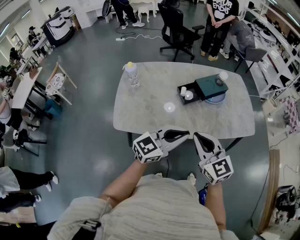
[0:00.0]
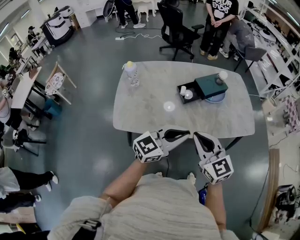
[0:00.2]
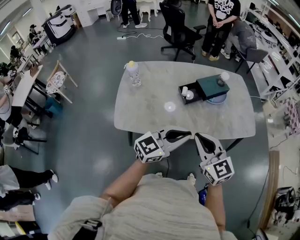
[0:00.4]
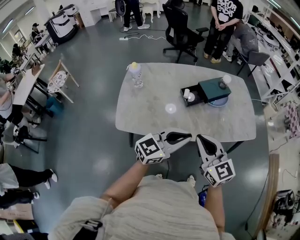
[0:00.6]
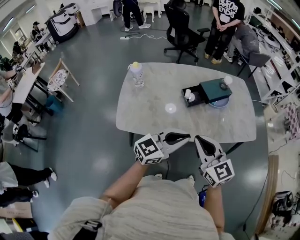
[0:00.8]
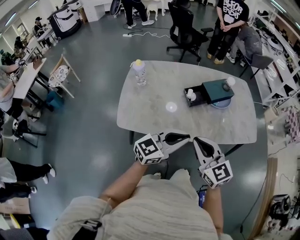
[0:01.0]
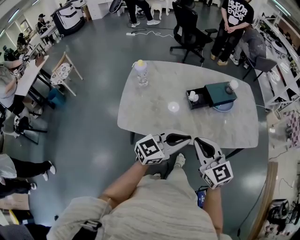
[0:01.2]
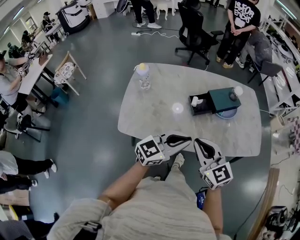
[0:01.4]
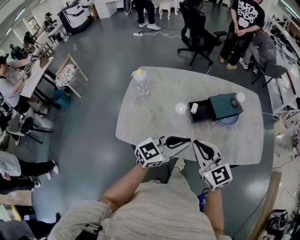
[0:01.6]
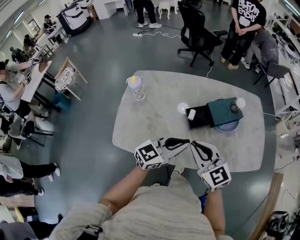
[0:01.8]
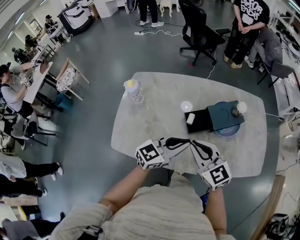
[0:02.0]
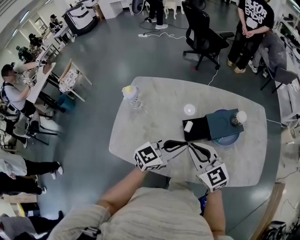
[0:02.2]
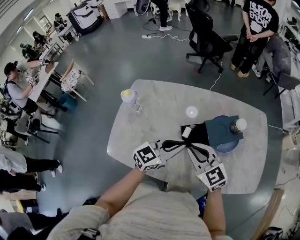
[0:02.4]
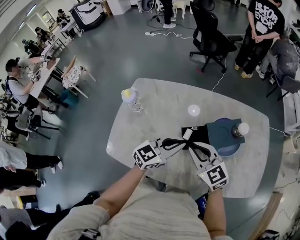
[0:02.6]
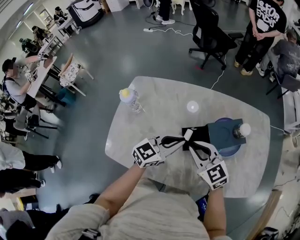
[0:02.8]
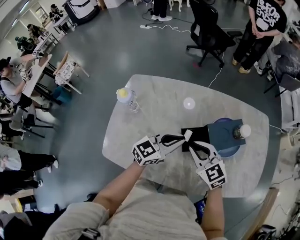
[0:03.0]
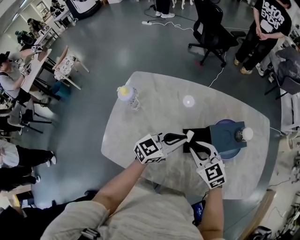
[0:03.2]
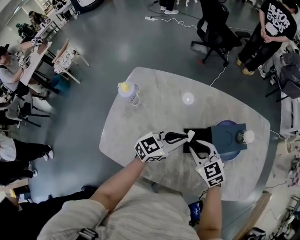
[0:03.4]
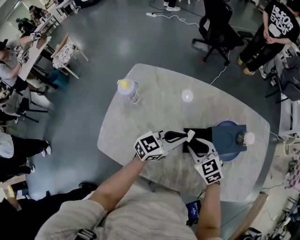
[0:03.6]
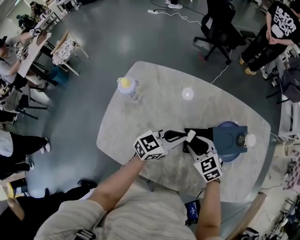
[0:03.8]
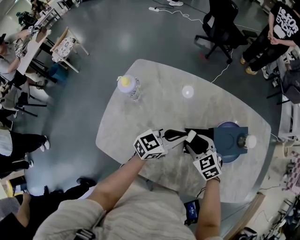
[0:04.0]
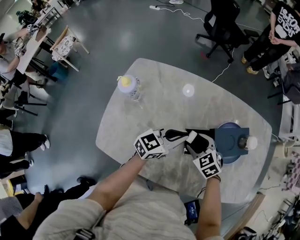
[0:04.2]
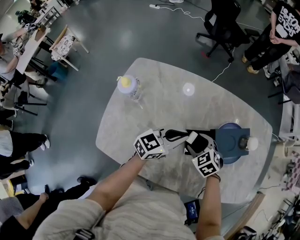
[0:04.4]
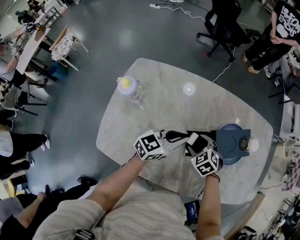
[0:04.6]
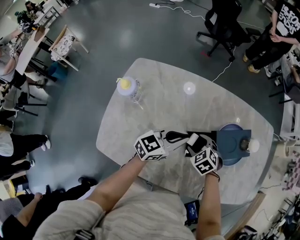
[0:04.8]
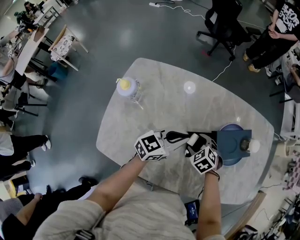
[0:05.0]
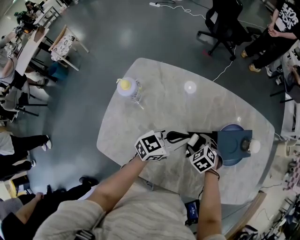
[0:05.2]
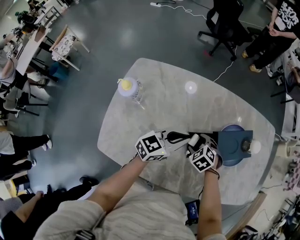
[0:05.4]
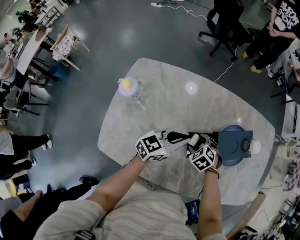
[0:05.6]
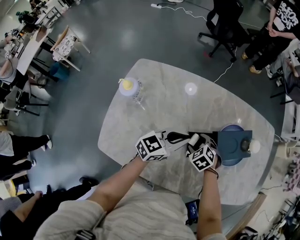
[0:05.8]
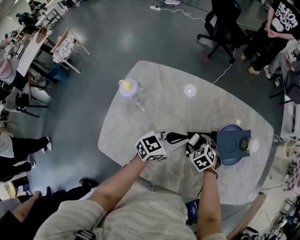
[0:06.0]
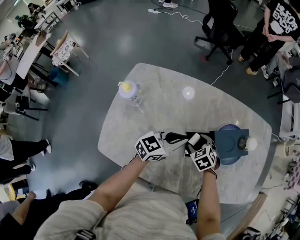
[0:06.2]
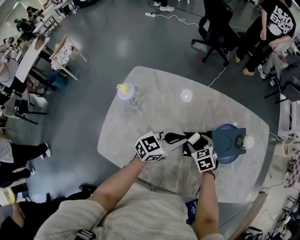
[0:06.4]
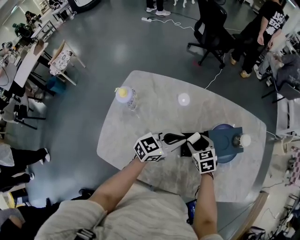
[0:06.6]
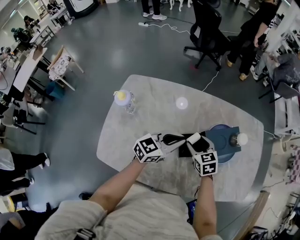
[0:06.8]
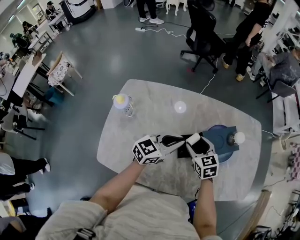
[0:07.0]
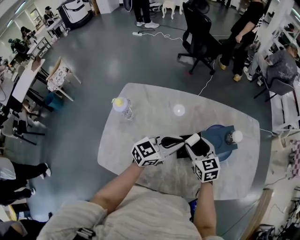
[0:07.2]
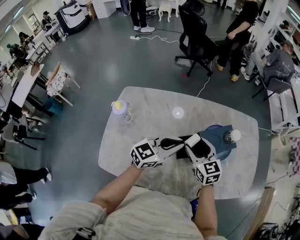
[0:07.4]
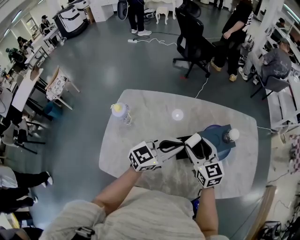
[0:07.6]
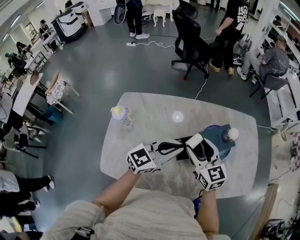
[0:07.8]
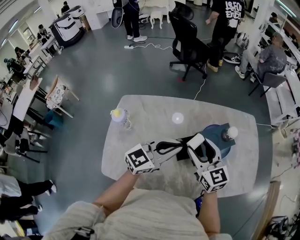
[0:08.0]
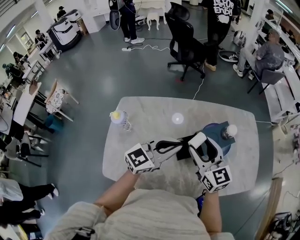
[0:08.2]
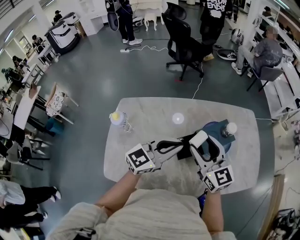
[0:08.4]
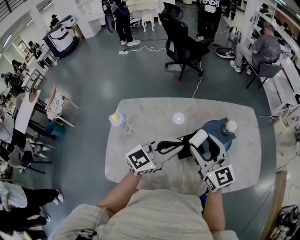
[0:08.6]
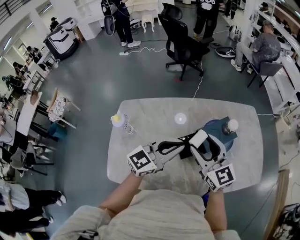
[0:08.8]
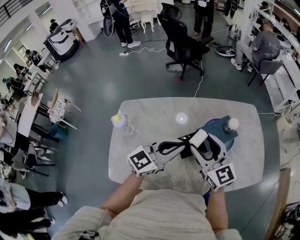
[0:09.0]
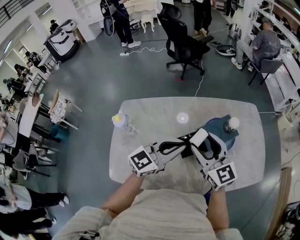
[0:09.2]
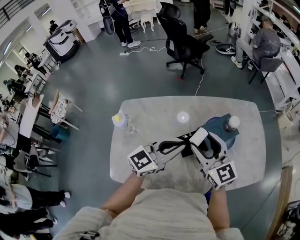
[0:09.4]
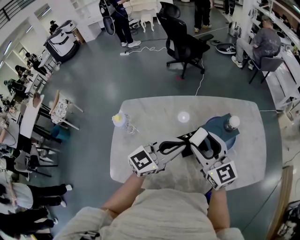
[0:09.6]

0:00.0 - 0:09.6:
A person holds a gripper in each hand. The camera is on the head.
0:00.0 - 0:01.6: Both grippers move forward, some 10 cm.
0:01.6 - 0:03.2: The right gripper goes about 25 cm forward and downward, and swivels about 20 degrees, while the left gripper moves forward, about 25 cm.
0:03.2 - 0:04.8: The right gripper is displaced downward by about 15 cm, angles its fingers downward, by roughly 30 degrees, and opens, while the left gripper ends up about 5 cm from where it was.
0:04.8 - 0:06.4: The grippers stay close to where they were, moving slightly.
0:06.4 - 0:08.0: The right gripper shifts some 25 cm upward, and tips its fingers upward by roughly 40 degrees, while the left gripper goes about 15 cm upward.
0:08.0 - 0:09.6: There are only small adjustments of the grippers.

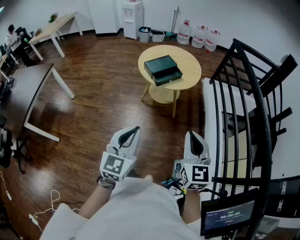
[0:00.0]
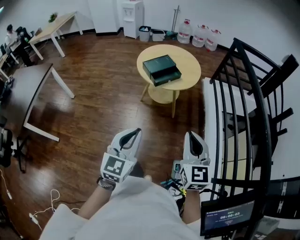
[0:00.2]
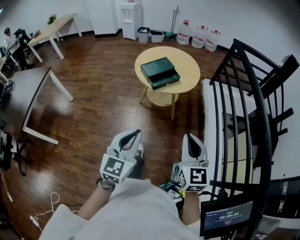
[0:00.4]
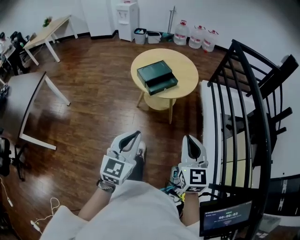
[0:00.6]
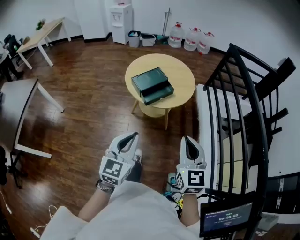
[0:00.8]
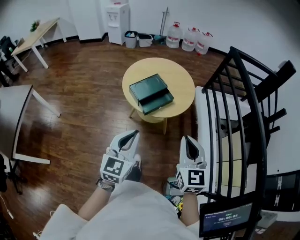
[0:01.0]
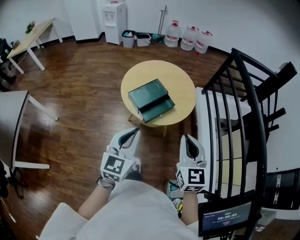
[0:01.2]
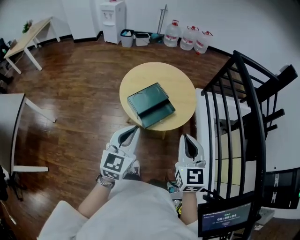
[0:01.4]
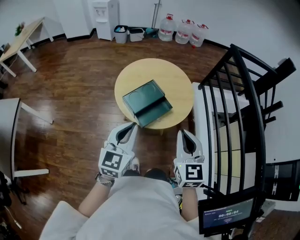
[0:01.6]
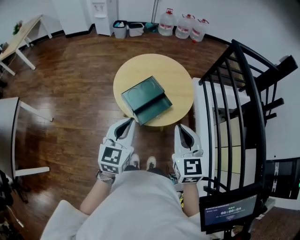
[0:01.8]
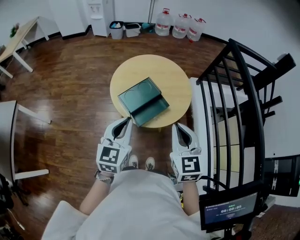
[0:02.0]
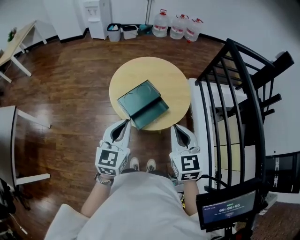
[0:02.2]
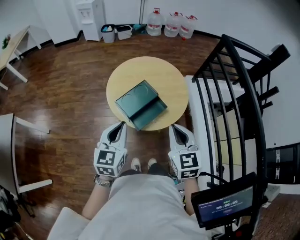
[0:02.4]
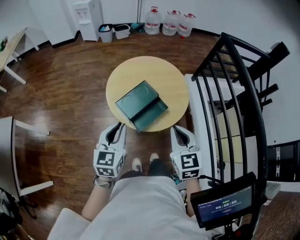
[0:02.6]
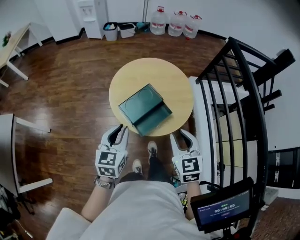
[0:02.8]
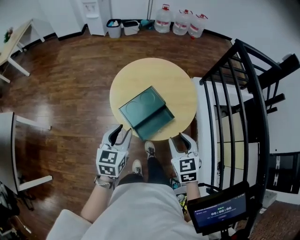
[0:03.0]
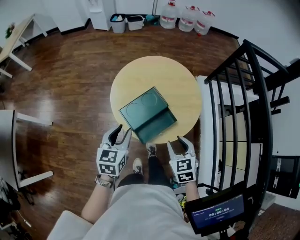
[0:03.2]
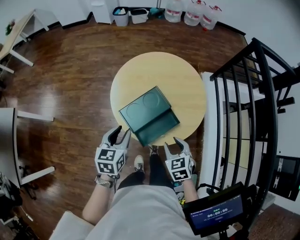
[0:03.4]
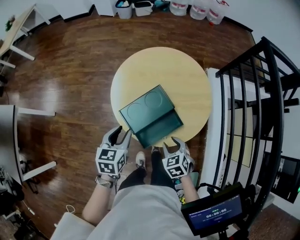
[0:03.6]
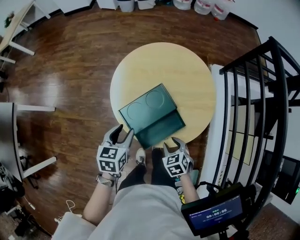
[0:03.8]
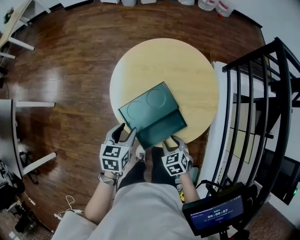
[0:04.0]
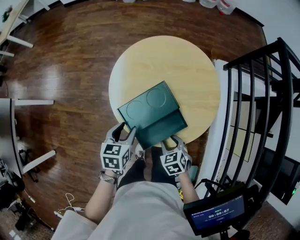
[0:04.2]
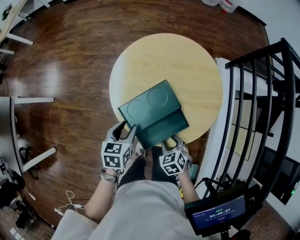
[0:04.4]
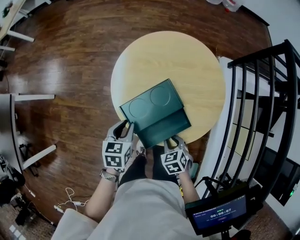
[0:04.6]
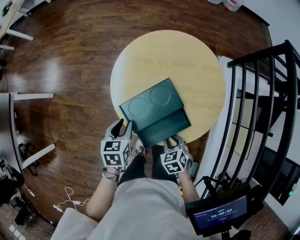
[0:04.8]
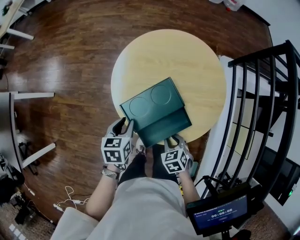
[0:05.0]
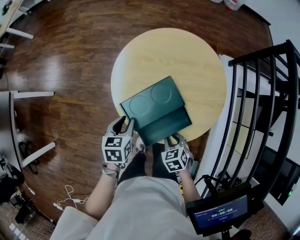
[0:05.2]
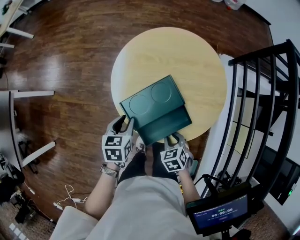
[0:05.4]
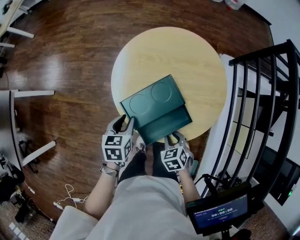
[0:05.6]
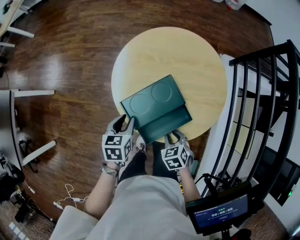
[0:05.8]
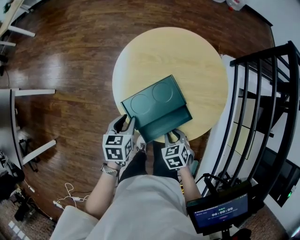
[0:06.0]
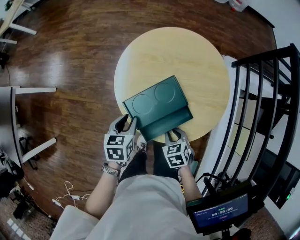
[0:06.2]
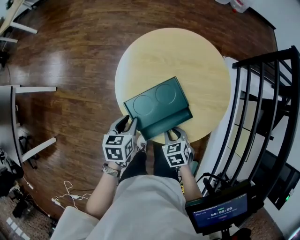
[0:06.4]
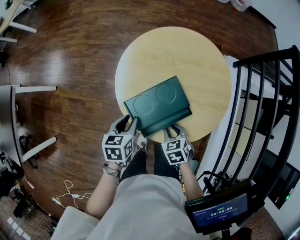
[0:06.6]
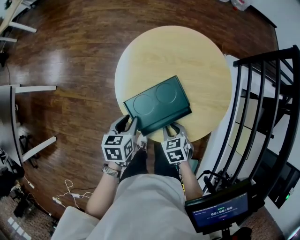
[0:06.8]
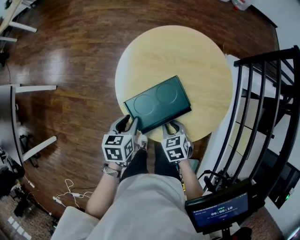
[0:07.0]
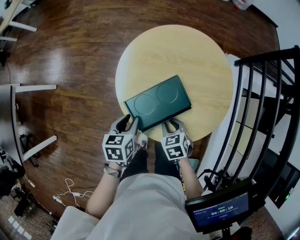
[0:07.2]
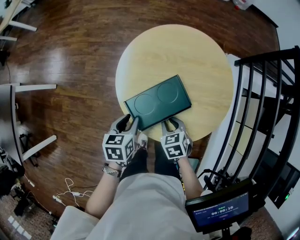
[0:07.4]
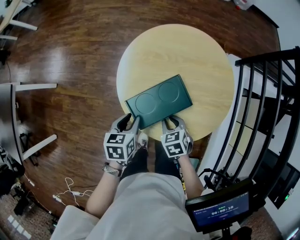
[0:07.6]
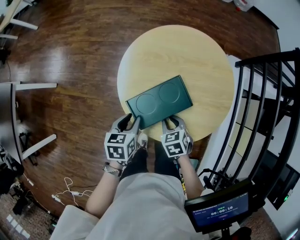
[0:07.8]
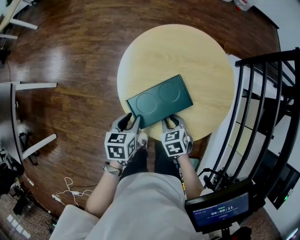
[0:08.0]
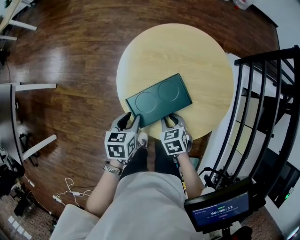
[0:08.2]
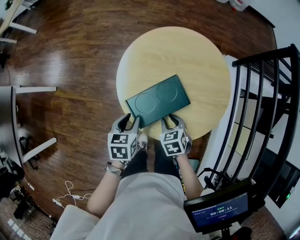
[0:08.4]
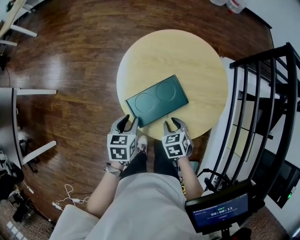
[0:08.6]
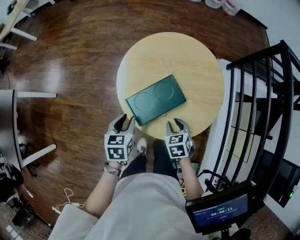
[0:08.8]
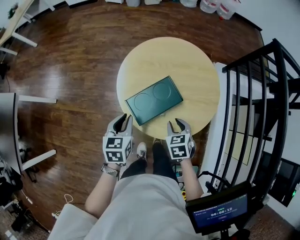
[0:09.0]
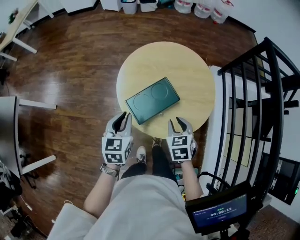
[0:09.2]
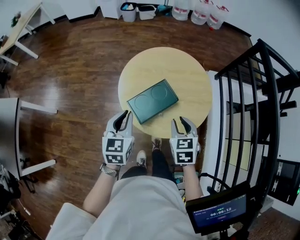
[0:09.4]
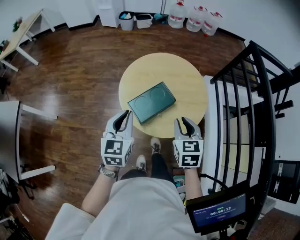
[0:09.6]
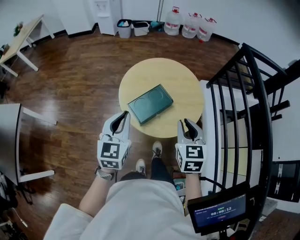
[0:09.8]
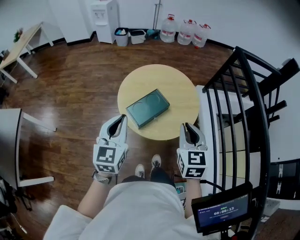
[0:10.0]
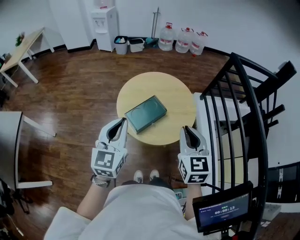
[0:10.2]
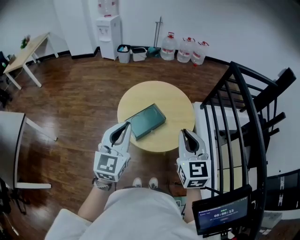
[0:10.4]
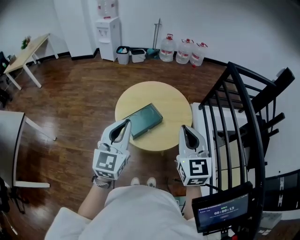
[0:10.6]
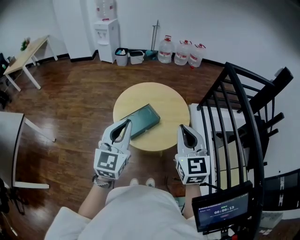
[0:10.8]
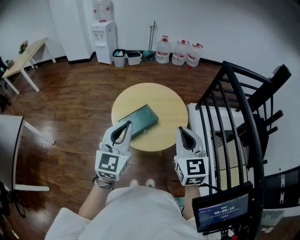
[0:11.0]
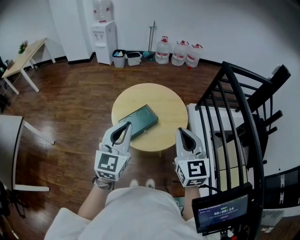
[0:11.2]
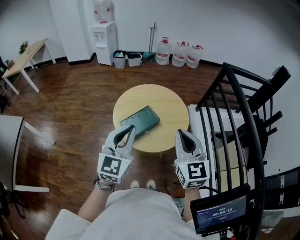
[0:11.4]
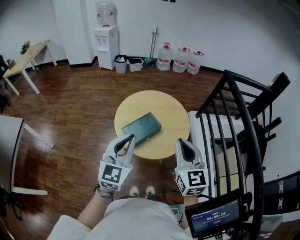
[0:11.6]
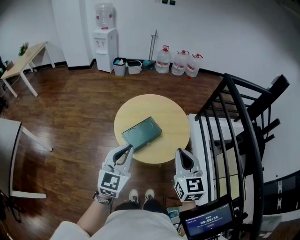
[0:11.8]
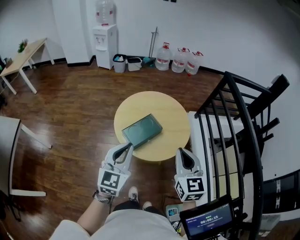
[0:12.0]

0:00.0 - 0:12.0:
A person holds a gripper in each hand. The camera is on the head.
0:00.0 - 0:01.6: Both grippers travel together forward, some 30 cm.
0:01.6 - 0:03.0: Both grippers travel together downward and forward, roughly 15 cm. The right gripper changes its angle by about 20 degrees, and opens up; the left gripper opens.
0:03.0 - 0:04.4: Both grippers move downward, some 20 cm. The right gripper swivels approximately 30 degrees, while the left gripper rotates roughly 30 degrees.
0:04.4 - 0:06.0: There are only small adjustments of the grippers.
0:06.0 - 0:07.6: The right gripper moves forward, approximately 5 cm.
0:07.6 - 0:09.0: The right gripper heads to the right, covering approximately 10 cm.
0:09.0 - 0:10.4: The grippers both shift upward by roughly 30 cm. The right gripper tilts its fingers roughly 40 degrees upward, while the left gripper tips its fingers upward by some 40 degrees.
0:10.4 - 0:12.0: The grippers make only small movements.

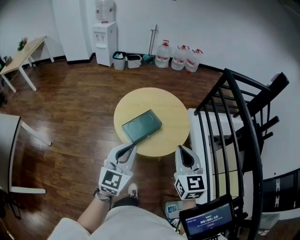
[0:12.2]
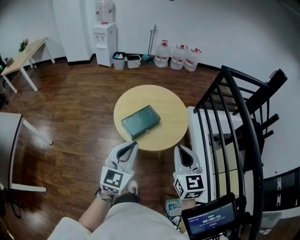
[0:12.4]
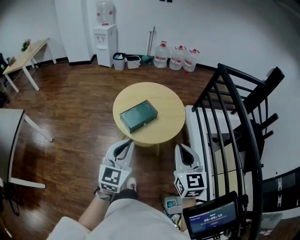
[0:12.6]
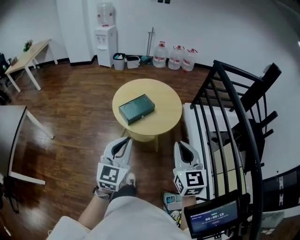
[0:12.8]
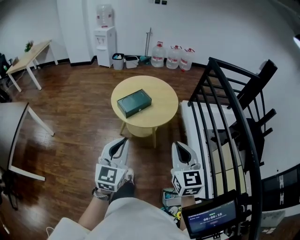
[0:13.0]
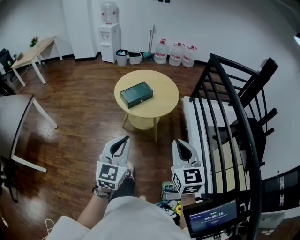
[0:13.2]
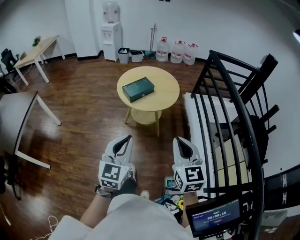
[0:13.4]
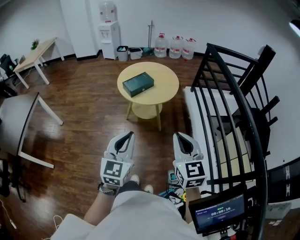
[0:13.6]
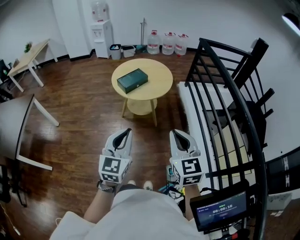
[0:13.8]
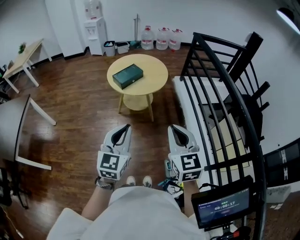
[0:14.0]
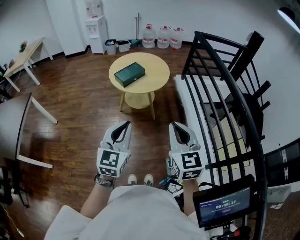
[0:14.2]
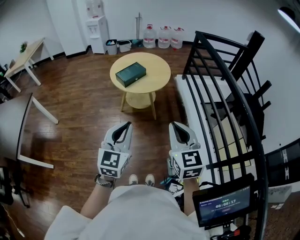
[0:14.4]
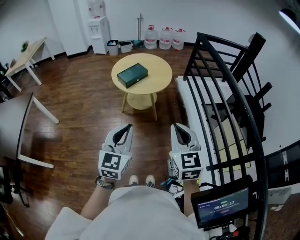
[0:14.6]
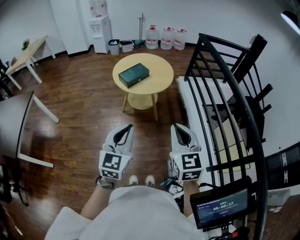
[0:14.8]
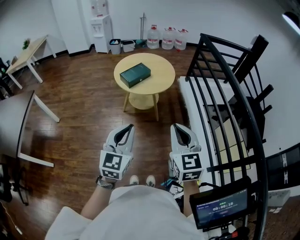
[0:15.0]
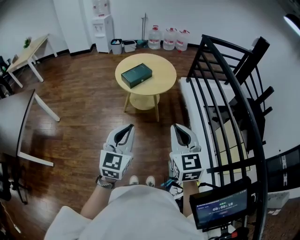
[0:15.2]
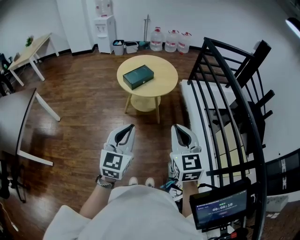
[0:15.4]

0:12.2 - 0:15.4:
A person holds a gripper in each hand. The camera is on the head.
0:12.2 - 0:13.8: Both grippers move backward, approximately 35 cm.
0:13.8 - 0:15.4: The grippers make only small movements.
